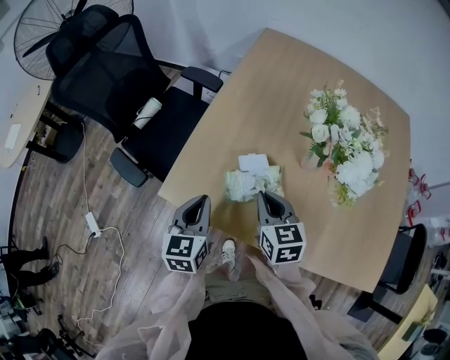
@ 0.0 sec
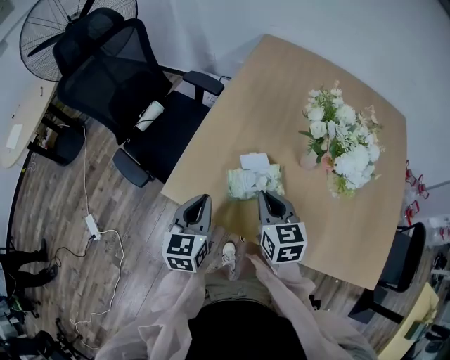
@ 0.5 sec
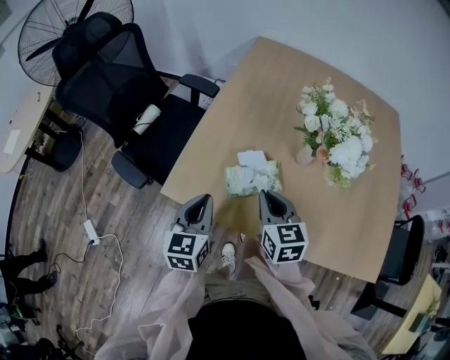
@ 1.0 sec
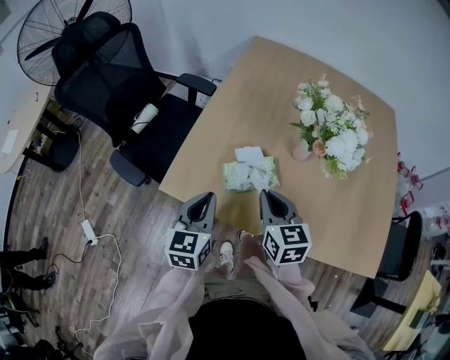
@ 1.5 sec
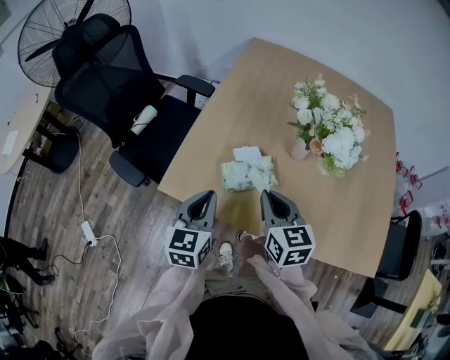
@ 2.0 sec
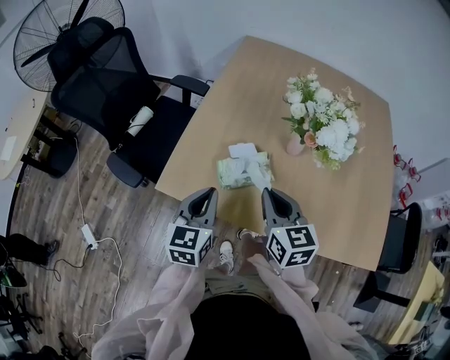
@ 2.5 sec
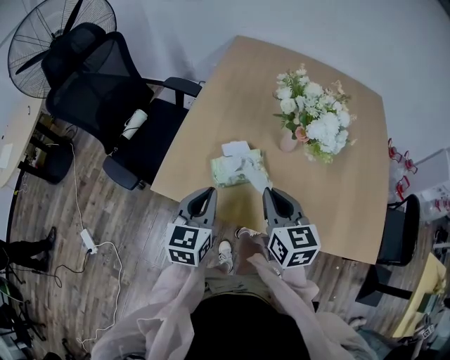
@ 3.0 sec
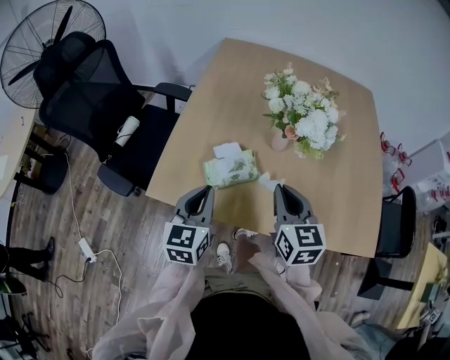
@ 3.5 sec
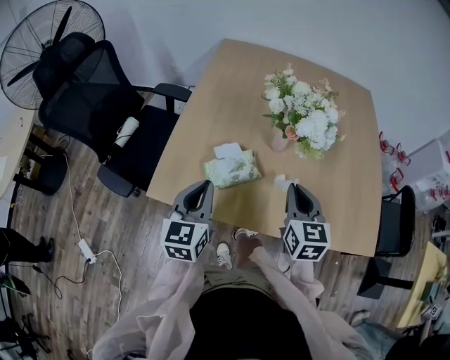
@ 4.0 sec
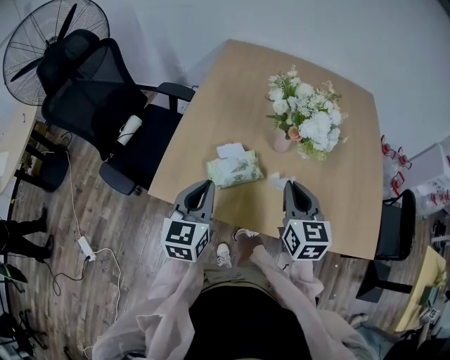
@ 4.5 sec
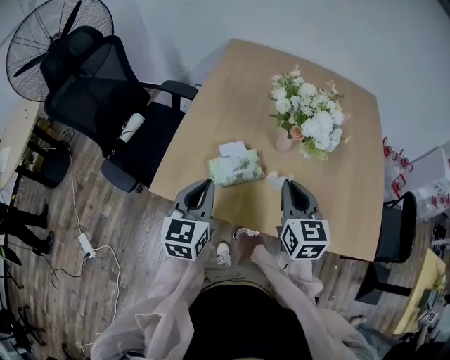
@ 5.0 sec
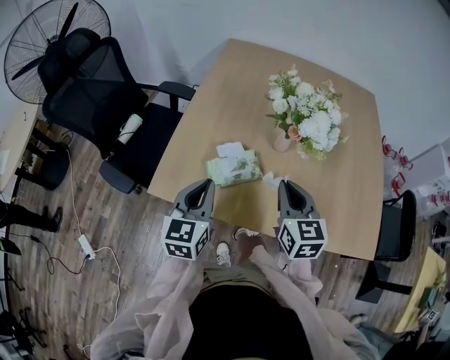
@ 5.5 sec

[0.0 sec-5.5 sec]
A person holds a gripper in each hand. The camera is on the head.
0.0 sec to 2.0 sec: The left gripper ends up some 5 cm from where it was, while the right gripper goes about 10 cm backward and upward.
2.0 sec to 3.5 sec: The right gripper moves to the right, about 10 cm.
3.5 sec to 5.5 sec: There are only small adjustments of the grippers.

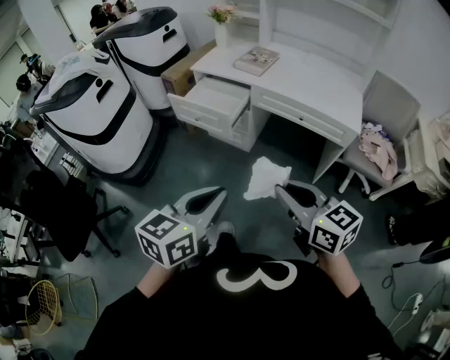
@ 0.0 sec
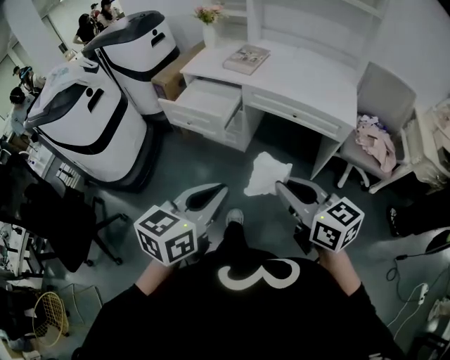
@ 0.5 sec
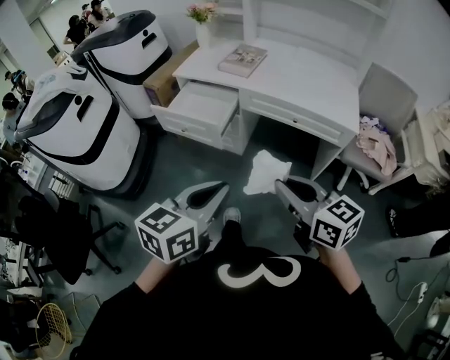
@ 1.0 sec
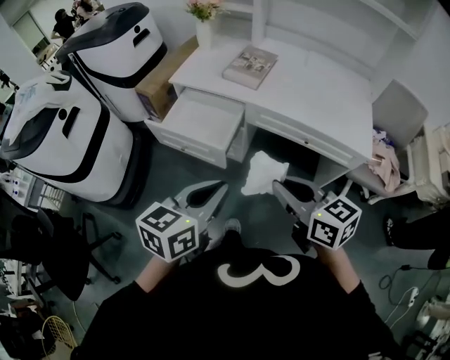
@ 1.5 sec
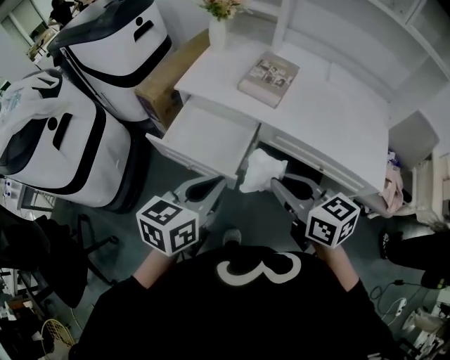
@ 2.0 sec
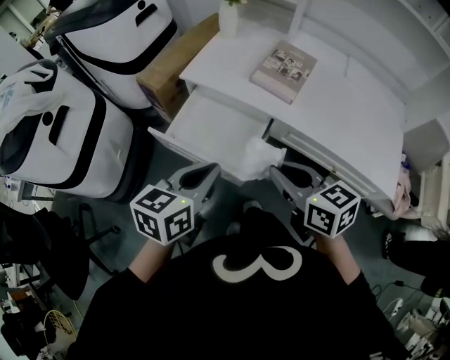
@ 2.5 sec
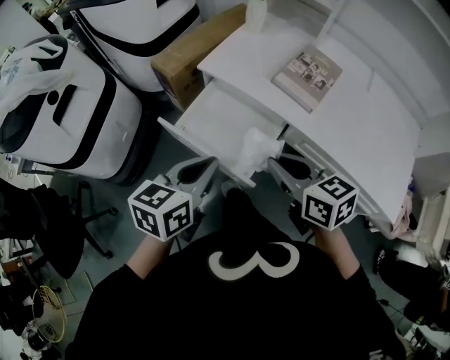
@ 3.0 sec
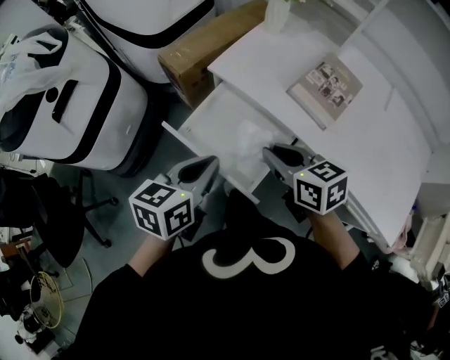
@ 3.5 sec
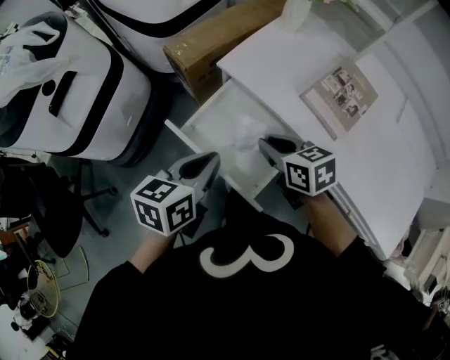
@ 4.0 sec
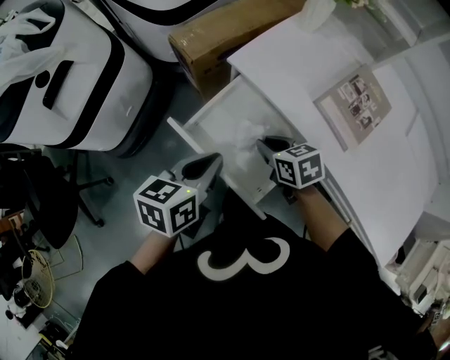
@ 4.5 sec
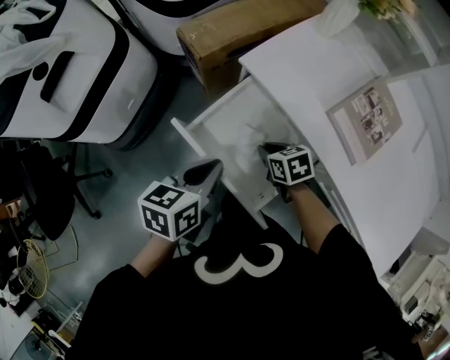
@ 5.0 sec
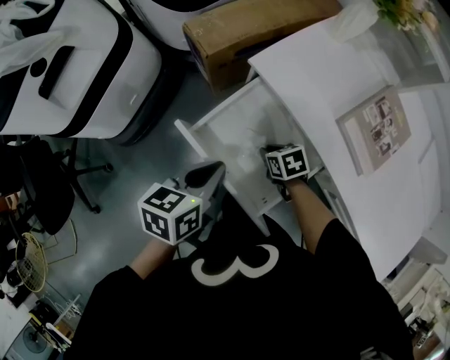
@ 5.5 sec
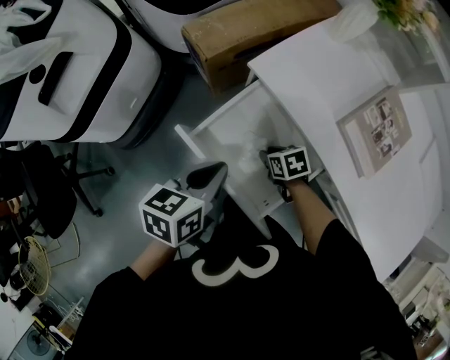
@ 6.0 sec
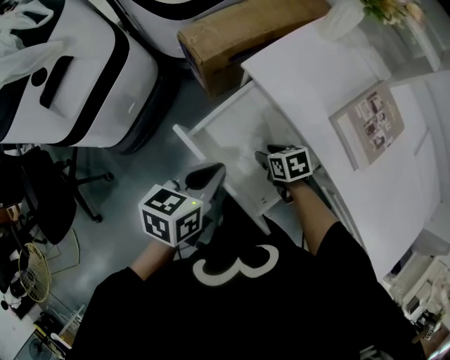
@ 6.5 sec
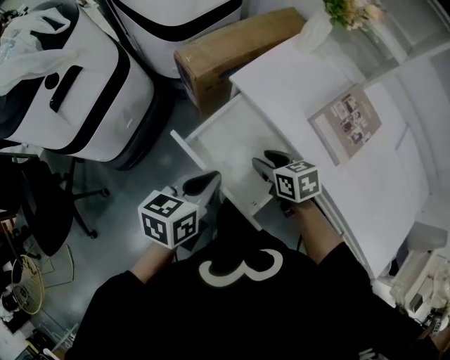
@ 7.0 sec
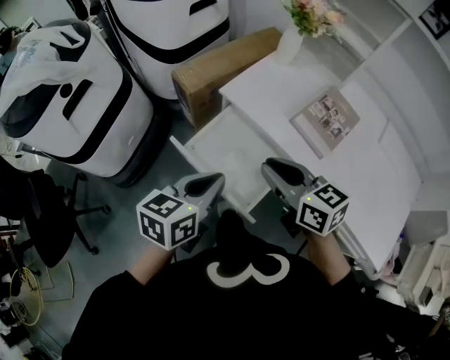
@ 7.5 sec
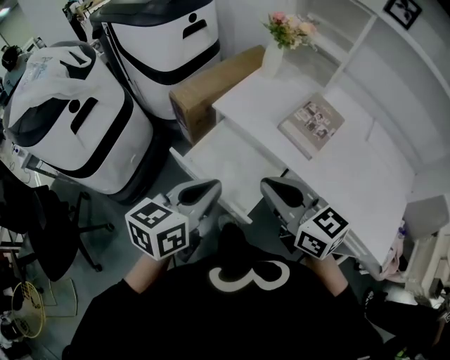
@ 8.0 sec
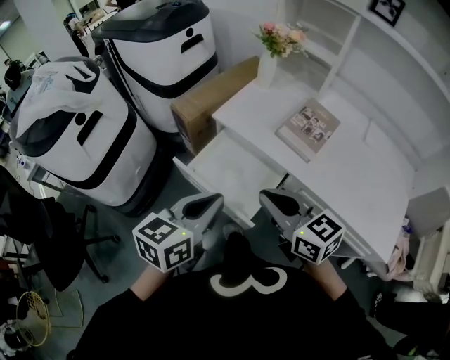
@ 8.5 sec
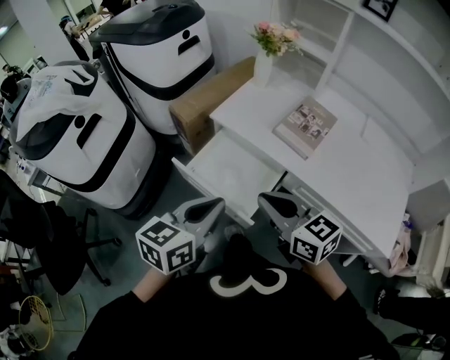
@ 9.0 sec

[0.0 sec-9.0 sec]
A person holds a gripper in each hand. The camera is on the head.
0.0 sec to 2.0 sec: Both grippers are carried forward, some 40 cm.
2.0 sec to 4.5 sec: The left gripper travels forward, downward and to the left by about 30 cm, and swivels some 30 degrees; the right gripper goes approximately 40 cm forward and downward, and changes its angle by some 40 degrees.
4.5 sec to 7.0 sec: The right gripper reaches roughly 15 cm downward, then returns, and opens its fingers.
7.0 sec to 9.0 sec: The left gripper goes some 20 cm upward and backward, and rotates about 20 degrees. Meanwhile the right gripper moves upward and backward, some 30 cm, tips its fingers upward by roughly 30 degrees, and closes its fingers.

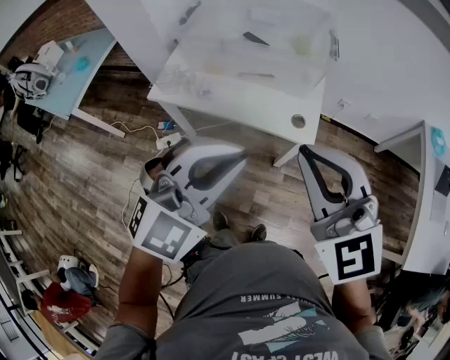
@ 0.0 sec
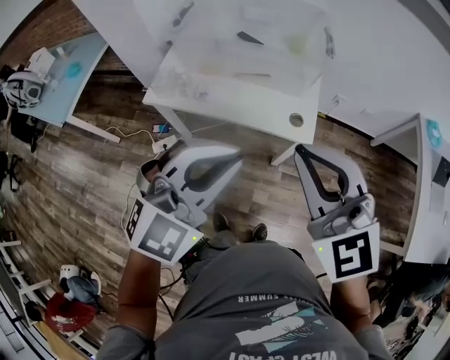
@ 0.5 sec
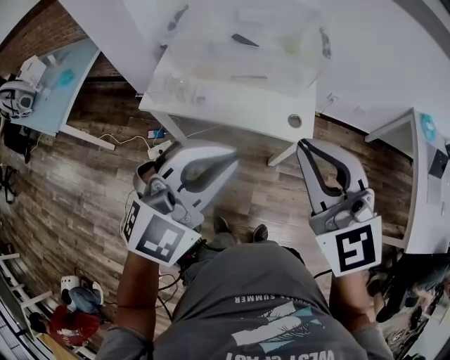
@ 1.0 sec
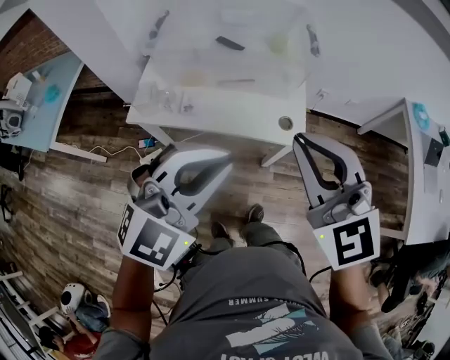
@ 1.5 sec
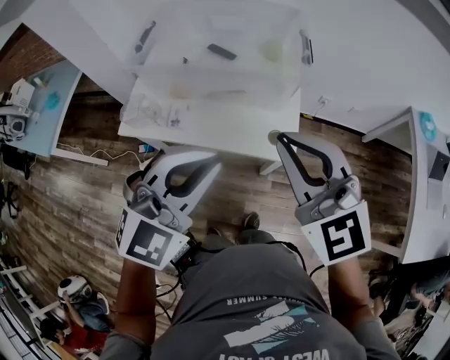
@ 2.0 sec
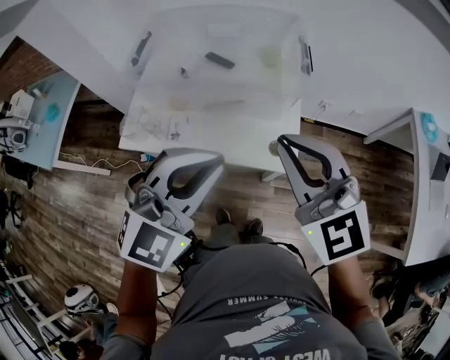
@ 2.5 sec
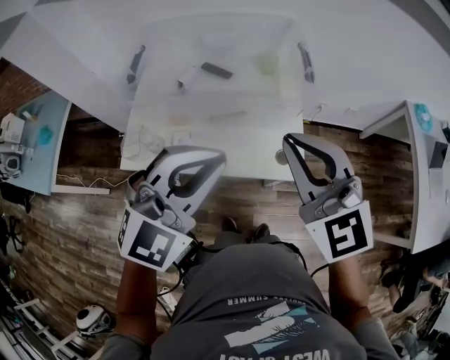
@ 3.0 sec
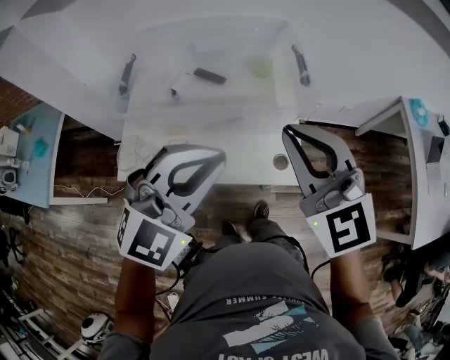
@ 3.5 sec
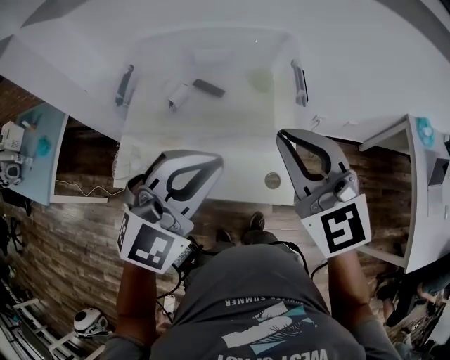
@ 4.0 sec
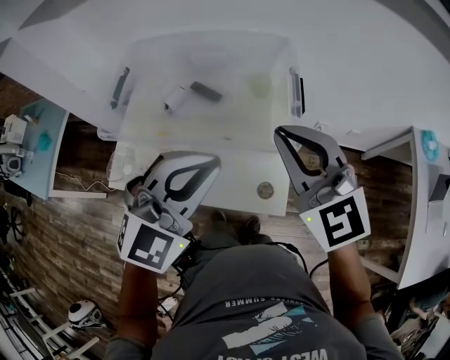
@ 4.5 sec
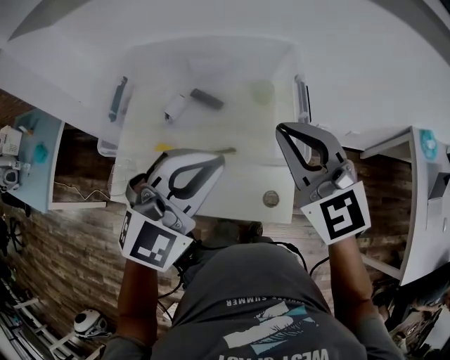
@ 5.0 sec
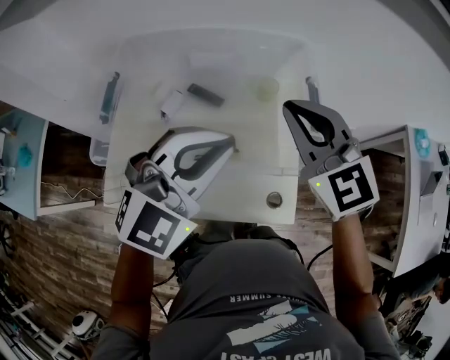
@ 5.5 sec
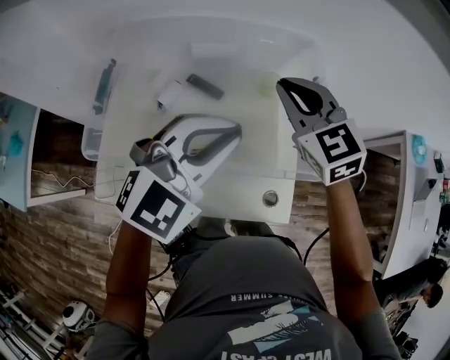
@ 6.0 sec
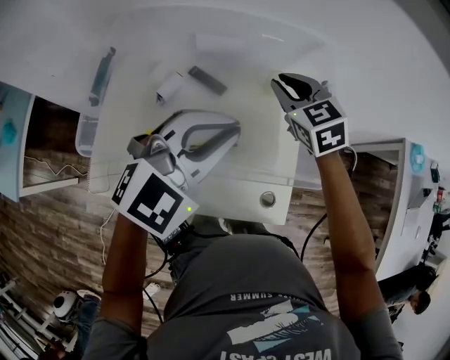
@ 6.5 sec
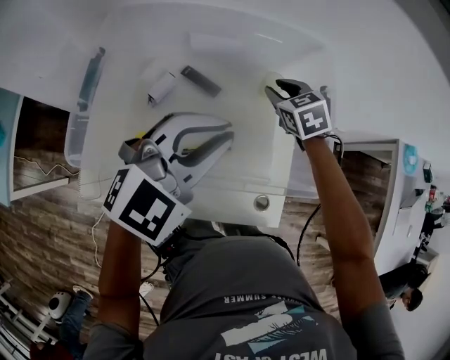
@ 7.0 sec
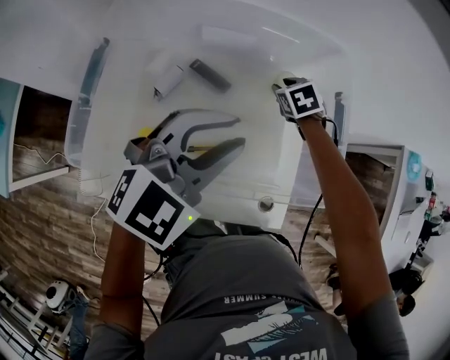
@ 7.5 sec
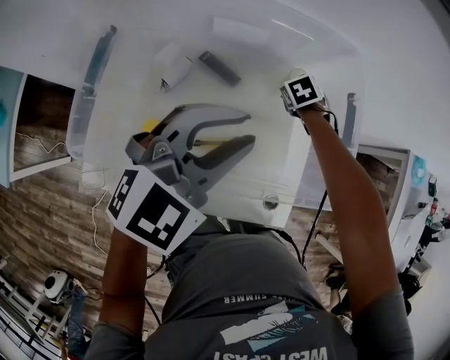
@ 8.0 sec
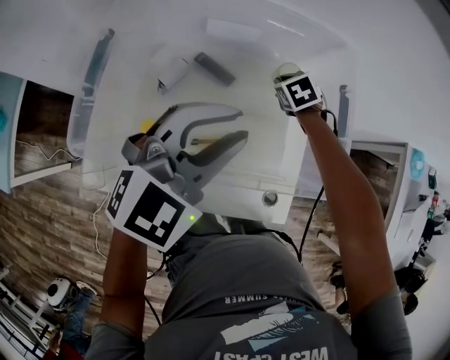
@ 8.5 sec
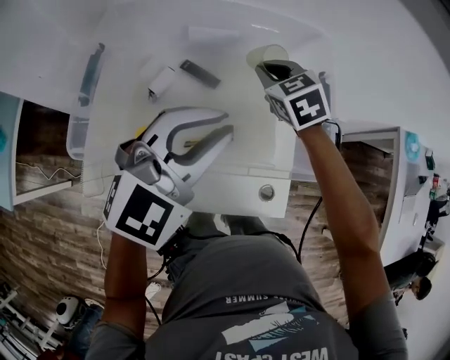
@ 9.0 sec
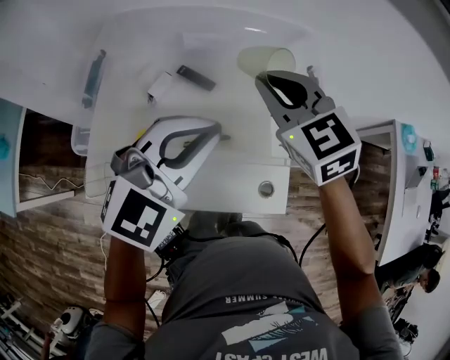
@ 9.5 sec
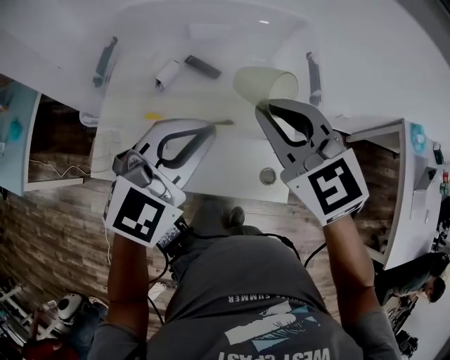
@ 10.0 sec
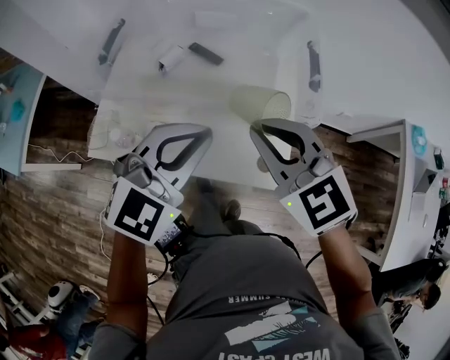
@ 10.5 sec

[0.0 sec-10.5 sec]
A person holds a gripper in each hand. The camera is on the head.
0.0 sec to 2.0 sec: The grippers both shift forward by some 10 cm.
2.0 sec to 4.0 sec: Both grippers travel together forward, about 15 cm.
4.0 sec to 6.5 sec: The left gripper heads forward, covering some 20 cm, while the right gripper is displaced forward and downward by about 35 cm, and turns by about 30 degrees.
6.5 sec to 8.5 sec: The right gripper goes approximately 20 cm downward and forward, and rotates approximately 30 degrees. Meanwhile the left gripper opens.
8.5 sec to 10.5 sec: The right gripper moves backward and upward, approximately 40 cm, and points its fingers roughly 40 degrees further upward. The left gripper travels backward by some 15 cm, and closes up.

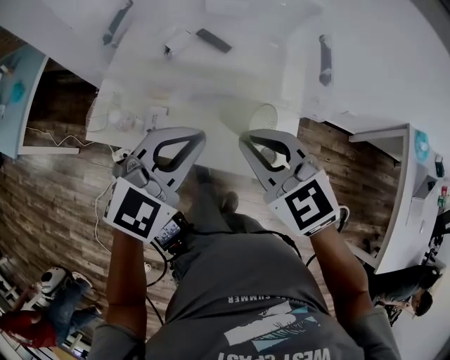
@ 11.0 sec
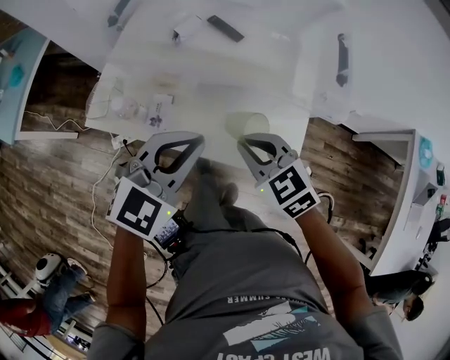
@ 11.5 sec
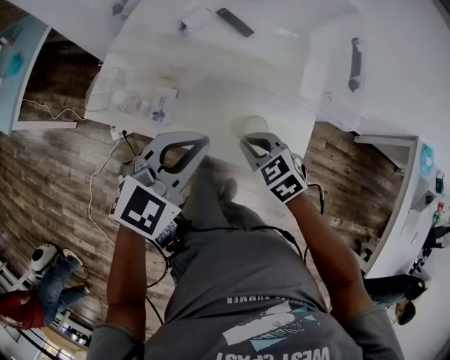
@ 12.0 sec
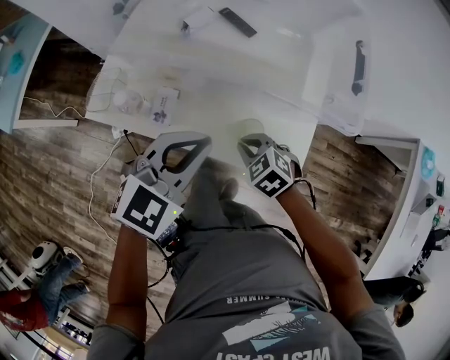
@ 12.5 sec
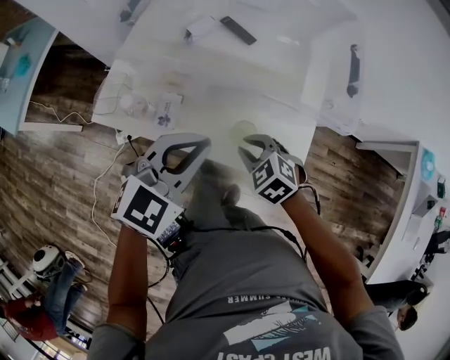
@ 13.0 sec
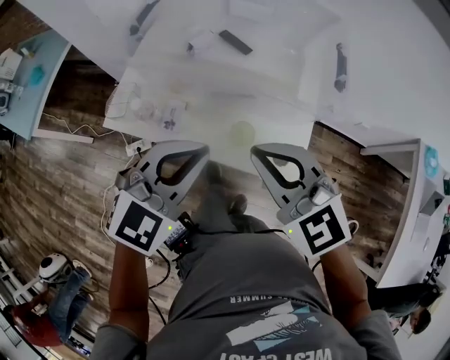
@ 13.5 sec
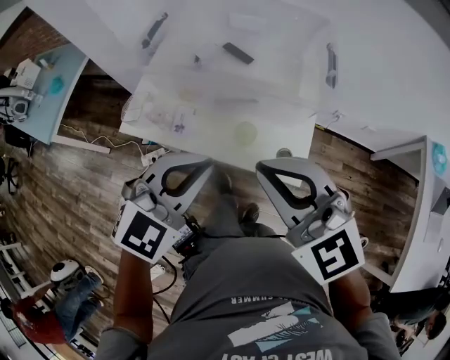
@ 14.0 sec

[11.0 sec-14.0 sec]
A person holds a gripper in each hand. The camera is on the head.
11.0 sec to 12.5 sec: The right gripper travels downward by some 25 cm, and tilts its fingers some 30 degrees downward, while the left gripper shifts approximately 5 cm downward.
12.5 sec to 14.0 sec: The left gripper is displaced upward and backward by some 15 cm. Meanwhile the right gripper heads upward, covering some 35 cm, and angles its fingers upward, by roughly 50 degrees.
